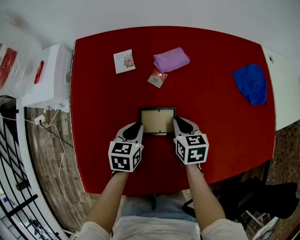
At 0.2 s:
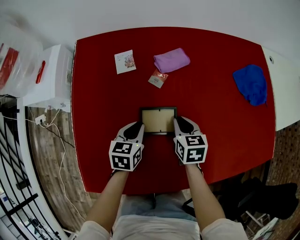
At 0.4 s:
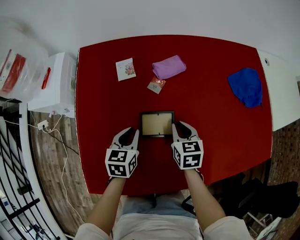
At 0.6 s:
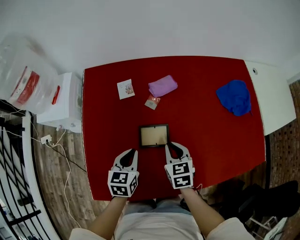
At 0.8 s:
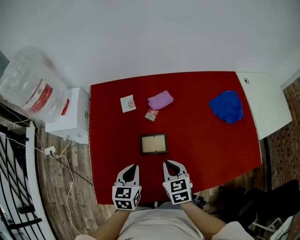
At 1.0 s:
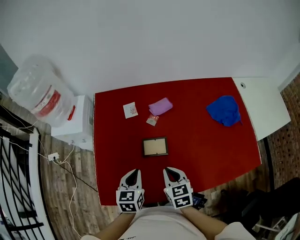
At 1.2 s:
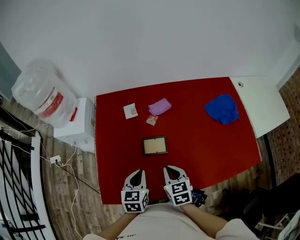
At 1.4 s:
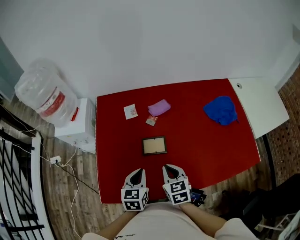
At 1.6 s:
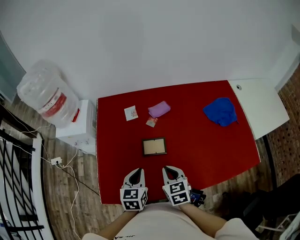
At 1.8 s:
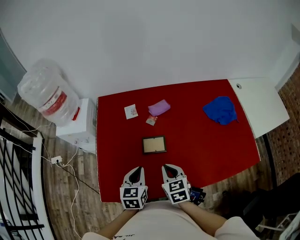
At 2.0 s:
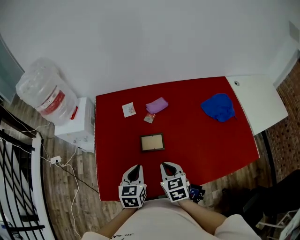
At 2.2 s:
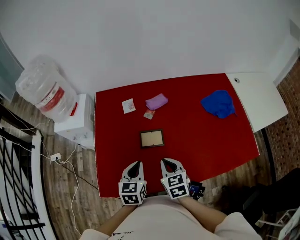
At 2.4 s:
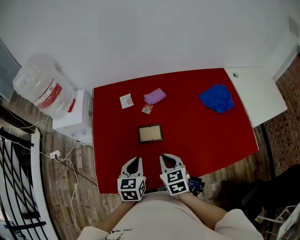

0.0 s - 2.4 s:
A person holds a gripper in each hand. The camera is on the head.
0.0 s - 1.2 s: The grippers both shift upward and backward by some 25 cm.
1.2 s - 2.4 s: There are only small adjustments of the grippers.

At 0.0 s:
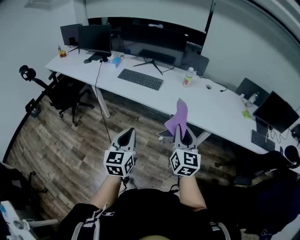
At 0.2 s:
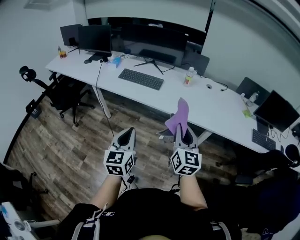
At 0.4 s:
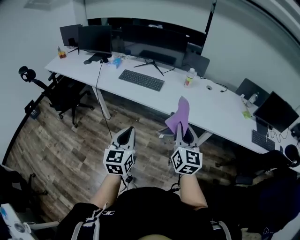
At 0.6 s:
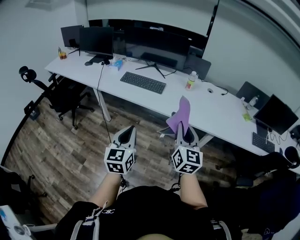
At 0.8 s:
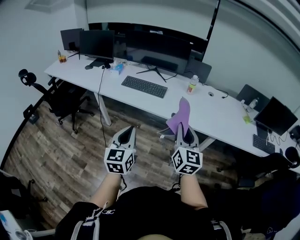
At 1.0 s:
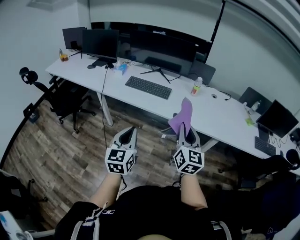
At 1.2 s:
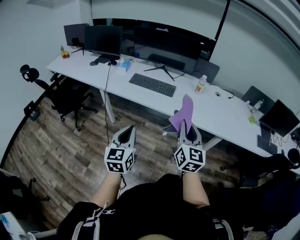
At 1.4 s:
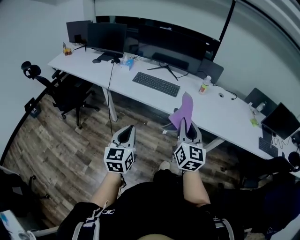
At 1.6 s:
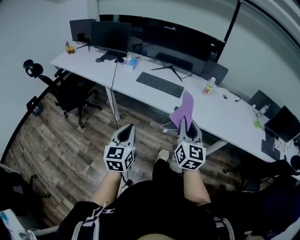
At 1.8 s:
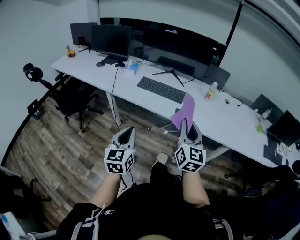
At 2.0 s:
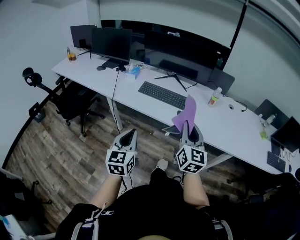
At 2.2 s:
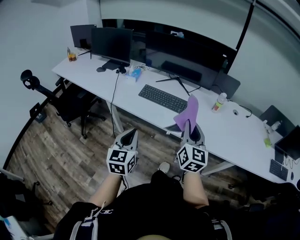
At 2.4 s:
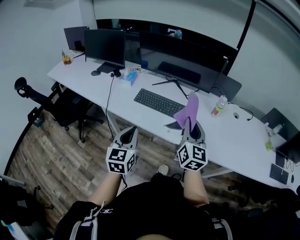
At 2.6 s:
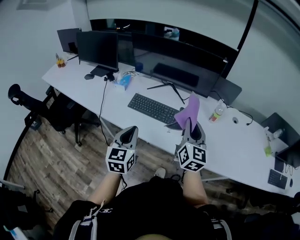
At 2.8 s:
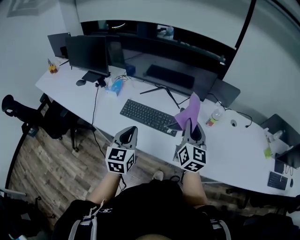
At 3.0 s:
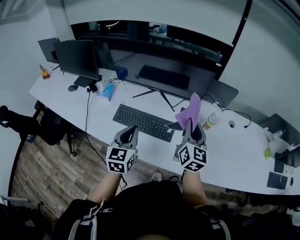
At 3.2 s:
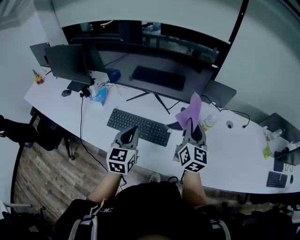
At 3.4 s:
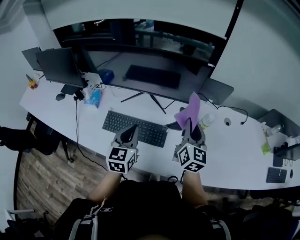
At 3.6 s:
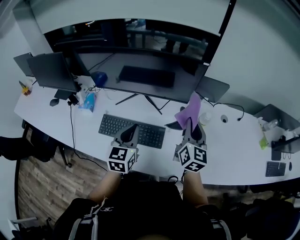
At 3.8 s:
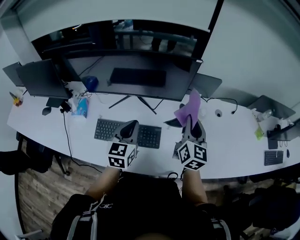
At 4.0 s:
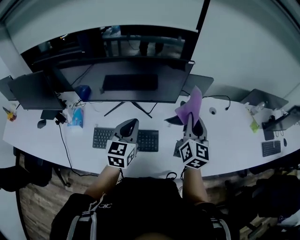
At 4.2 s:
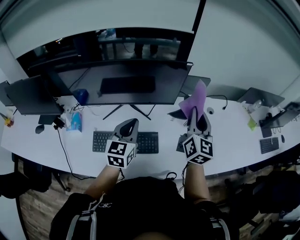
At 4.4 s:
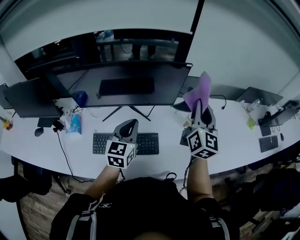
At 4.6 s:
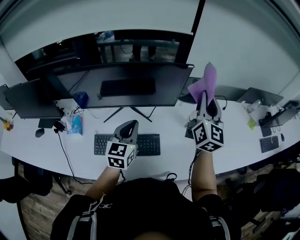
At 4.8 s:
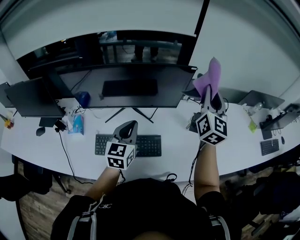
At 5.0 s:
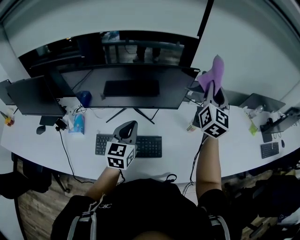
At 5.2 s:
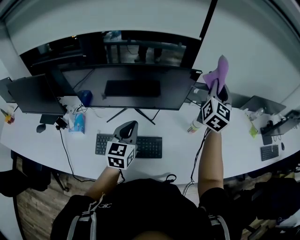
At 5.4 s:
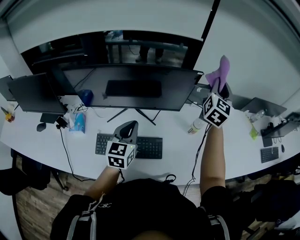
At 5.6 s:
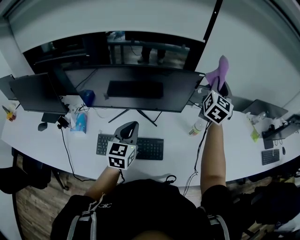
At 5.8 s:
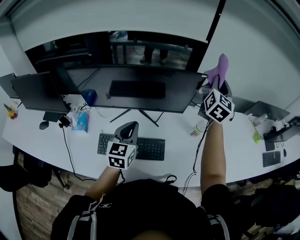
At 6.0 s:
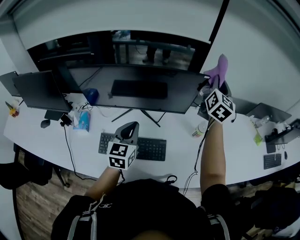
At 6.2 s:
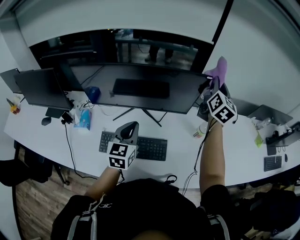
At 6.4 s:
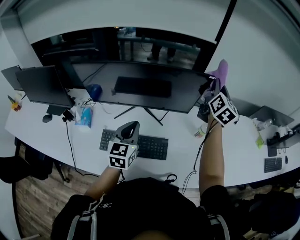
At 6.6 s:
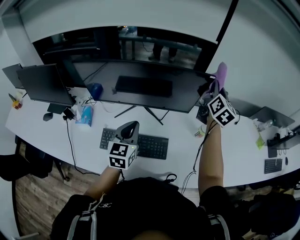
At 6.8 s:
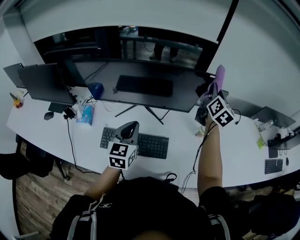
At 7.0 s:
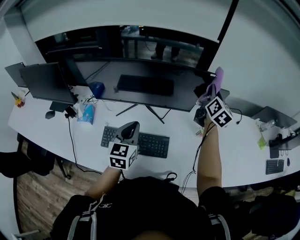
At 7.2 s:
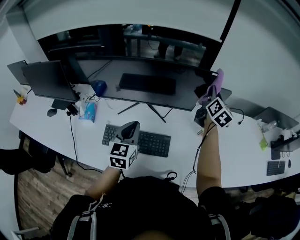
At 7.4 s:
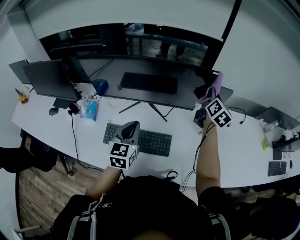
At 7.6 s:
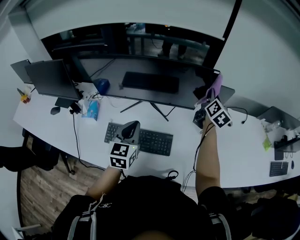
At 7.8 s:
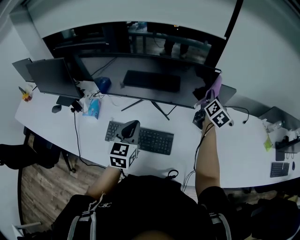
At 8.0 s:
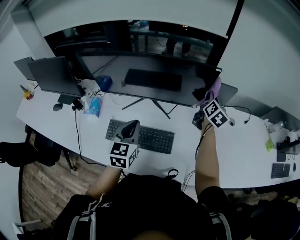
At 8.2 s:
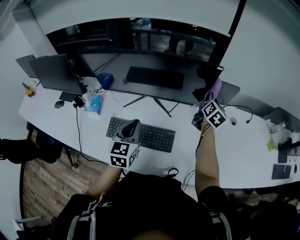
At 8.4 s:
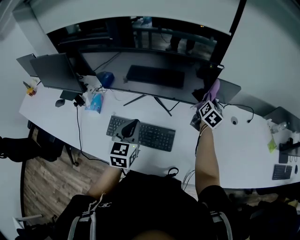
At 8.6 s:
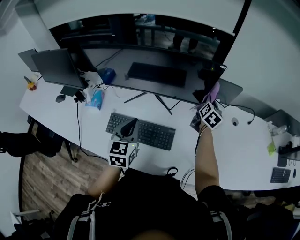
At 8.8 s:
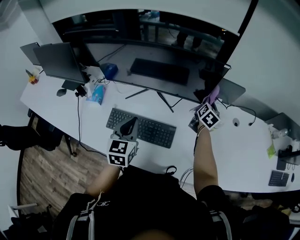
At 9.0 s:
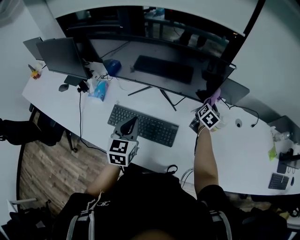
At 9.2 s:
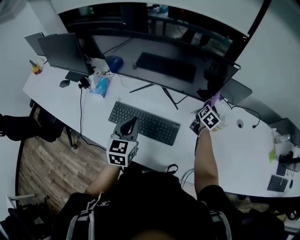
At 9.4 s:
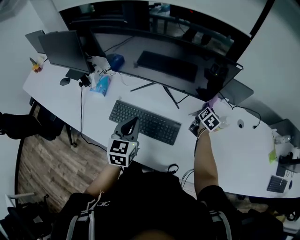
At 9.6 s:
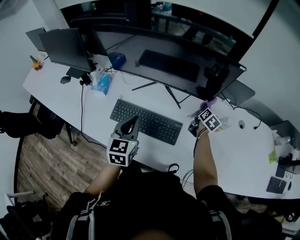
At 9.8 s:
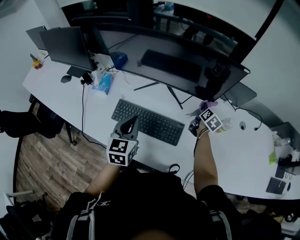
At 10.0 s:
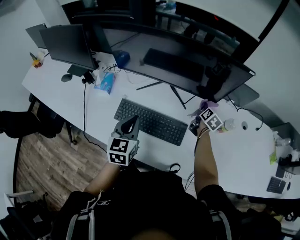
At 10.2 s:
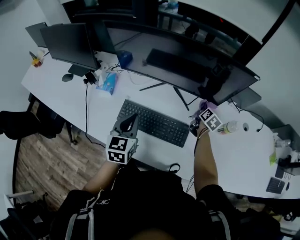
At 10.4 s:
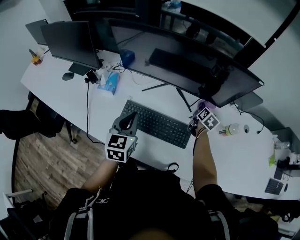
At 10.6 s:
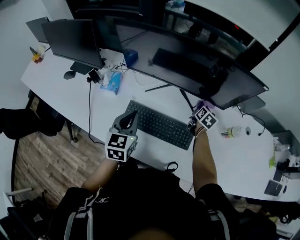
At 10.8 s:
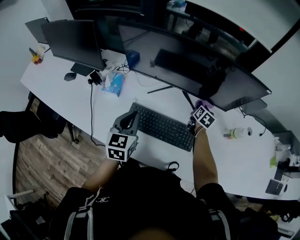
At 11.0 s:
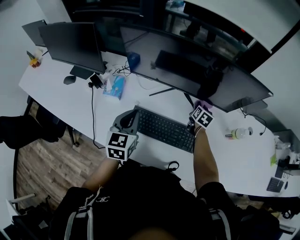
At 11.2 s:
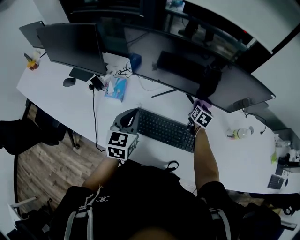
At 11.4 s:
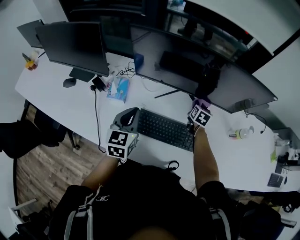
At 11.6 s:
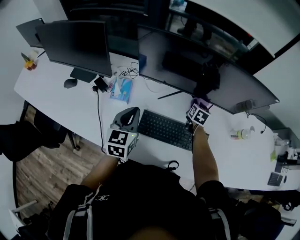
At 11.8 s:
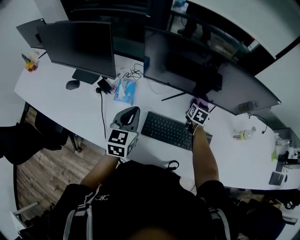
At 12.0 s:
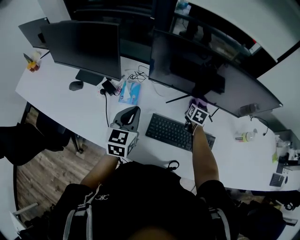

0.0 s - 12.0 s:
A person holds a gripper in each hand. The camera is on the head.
0.0 s - 1.6 s: Both grippers move to the left, approximately 20 cm.
1.6 s - 3.0 s: The pair of grippers is taken forward, roughly 50 cm.
3.0 s - 4.4 s: The right gripper moves forward, upward and to the right, approximately 15 cm, and swivels roughly 30 degrees. Meanwhile the left gripper shifts approximately 20 cm forward, and turns by about 30 degrees.
4.4 s - 6.0 s: The left gripper goes approximately 5 cm to the left, while the right gripper goes approximately 15 cm forward.
6.0 s - 7.6 s: The right gripper shifts some 15 cm downward, and turns by some 30 degrees.
7.6 s - 9.0 s: The right gripper moves downward, approximately 15 cm, and swivels roughly 20 degrees.
9.0 s - 10.4 s: The left gripper travels to the left by approximately 10 cm. Meanwhile the right gripper heads to the left and downward, covering some 15 cm.
10.4 s - 12.0 s: Both grippers travel together to the left, roughly 25 cm. The right gripper rotates about 20 degrees.

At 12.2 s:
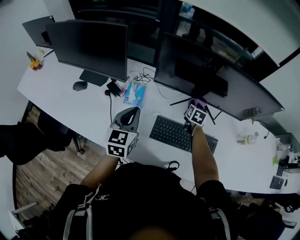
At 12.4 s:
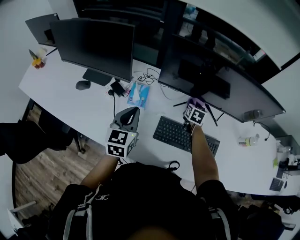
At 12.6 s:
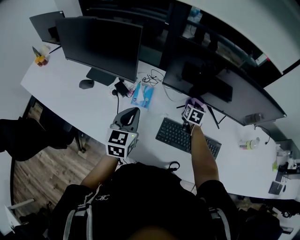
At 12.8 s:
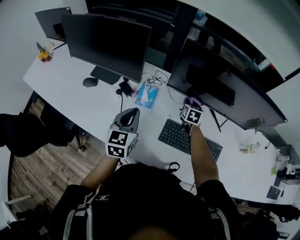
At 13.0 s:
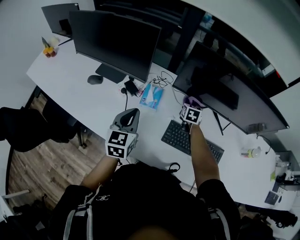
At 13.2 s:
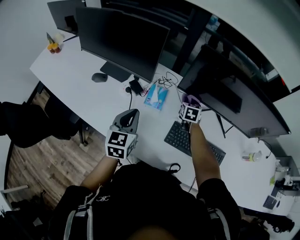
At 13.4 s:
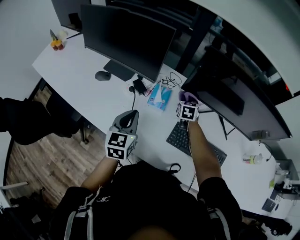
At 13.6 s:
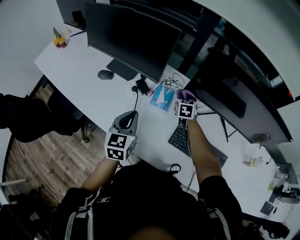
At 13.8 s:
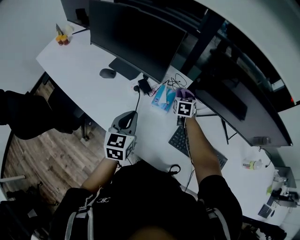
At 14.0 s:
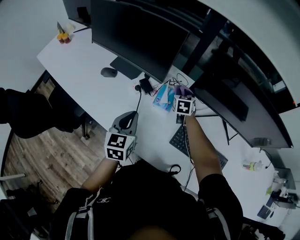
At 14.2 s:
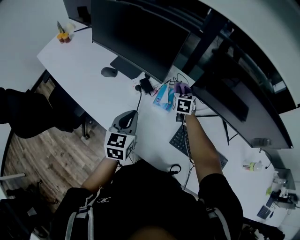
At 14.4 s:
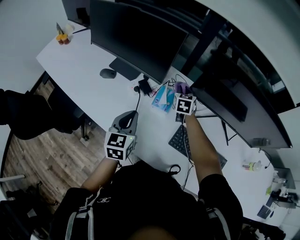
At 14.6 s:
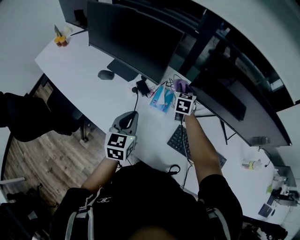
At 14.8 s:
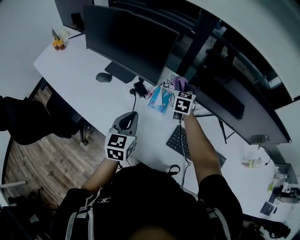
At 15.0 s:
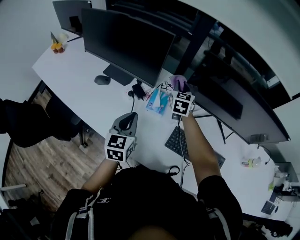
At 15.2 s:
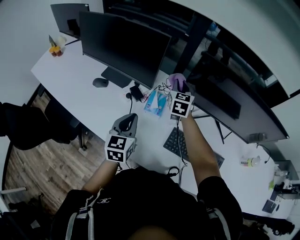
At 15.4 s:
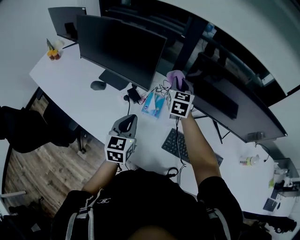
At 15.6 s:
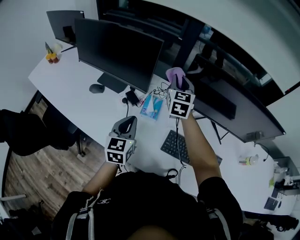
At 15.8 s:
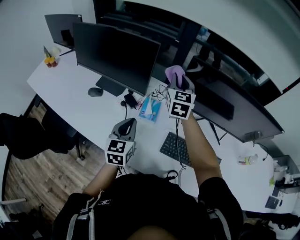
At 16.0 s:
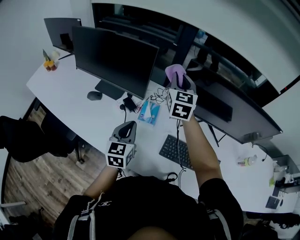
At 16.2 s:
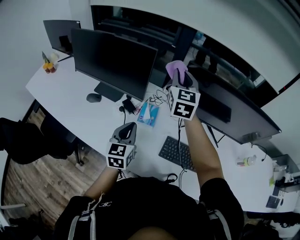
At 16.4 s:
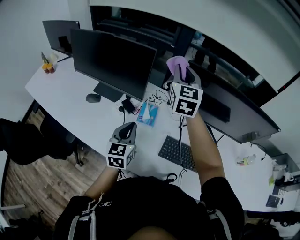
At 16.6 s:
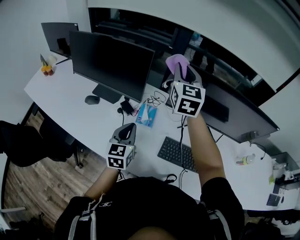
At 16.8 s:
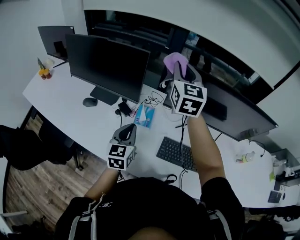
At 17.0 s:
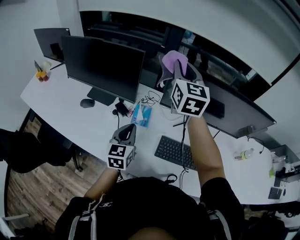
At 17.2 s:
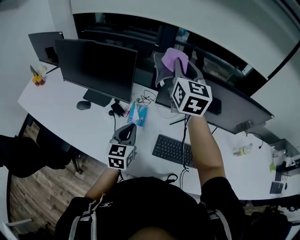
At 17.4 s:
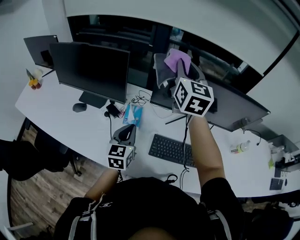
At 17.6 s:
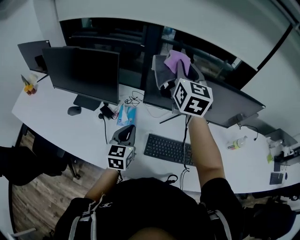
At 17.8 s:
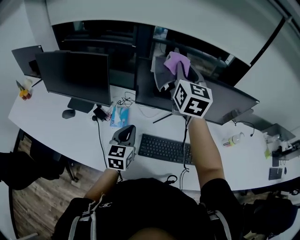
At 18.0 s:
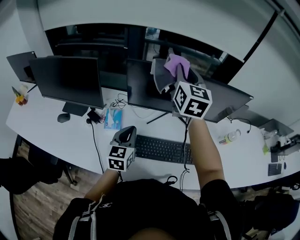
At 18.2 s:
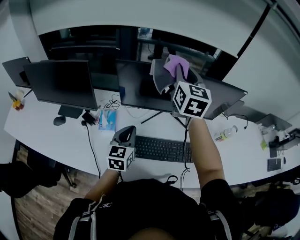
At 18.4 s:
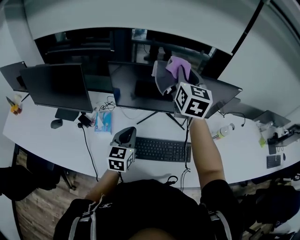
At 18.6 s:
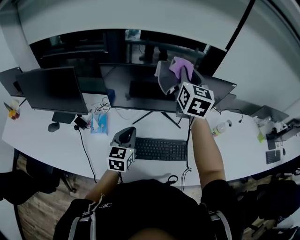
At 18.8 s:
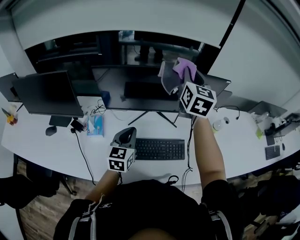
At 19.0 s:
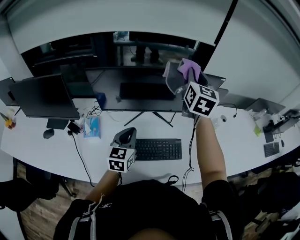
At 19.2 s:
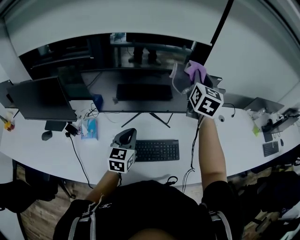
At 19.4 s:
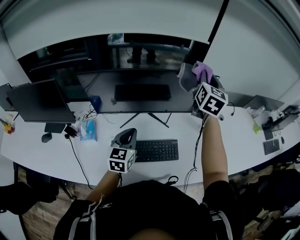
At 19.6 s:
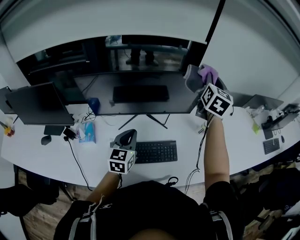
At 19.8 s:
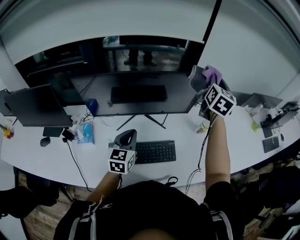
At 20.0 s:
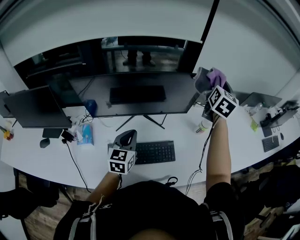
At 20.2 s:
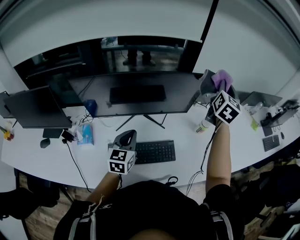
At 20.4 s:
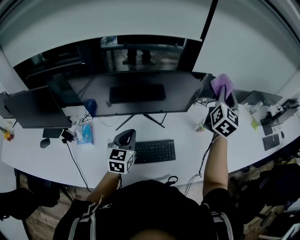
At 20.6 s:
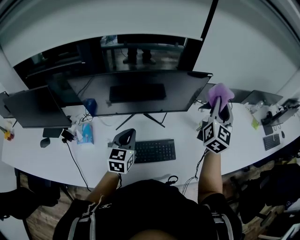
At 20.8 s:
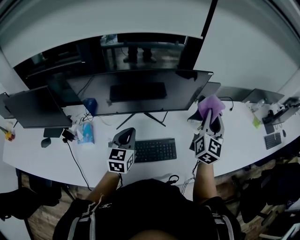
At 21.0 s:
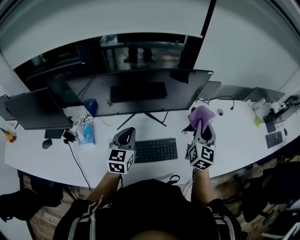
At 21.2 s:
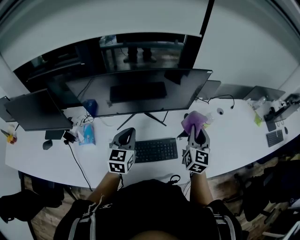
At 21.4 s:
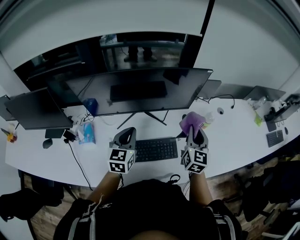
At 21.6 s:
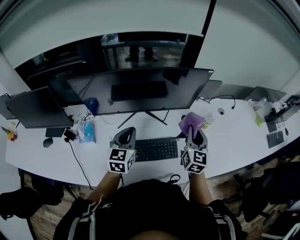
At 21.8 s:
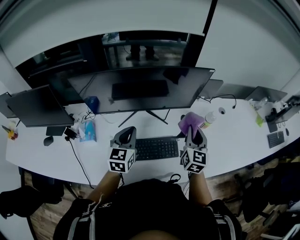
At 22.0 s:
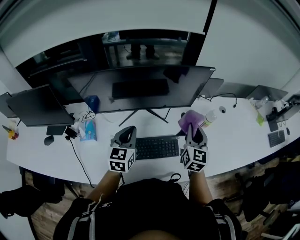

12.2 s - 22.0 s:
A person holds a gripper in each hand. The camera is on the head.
12.2 s - 13.6 s: The left gripper goes approximately 15 cm to the left and backward; the right gripper heads to the left, covering some 25 cm, and changes its angle by roughly 30 degrees.
13.6 s - 15.0 s: The right gripper travels upward by about 10 cm.
15.0 s - 16.4 s: The right gripper travels upward by about 25 cm, and changes its angle by about 20 degrees.
16.4 s - 17.8 s: The two grippers go some 15 cm to the right.
17.8 s - 19.2 s: The right gripper moves to the right, roughly 35 cm, and swivels roughly 20 degrees. The left gripper moves to the right, about 20 cm.
19.2 s - 20.6 s: The right gripper heads to the right, covering approximately 15 cm.
20.6 s - 22.0 s: The right gripper moves downward and to the left, some 20 cm, and changes its angle by roughly 20 degrees.
